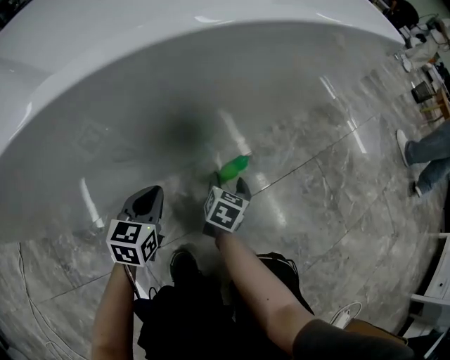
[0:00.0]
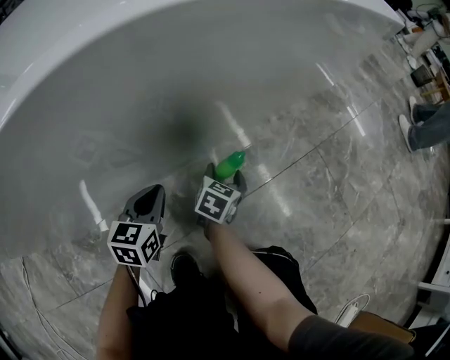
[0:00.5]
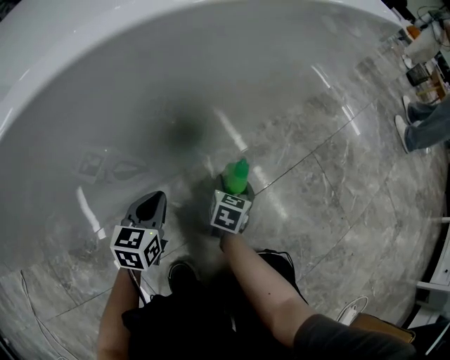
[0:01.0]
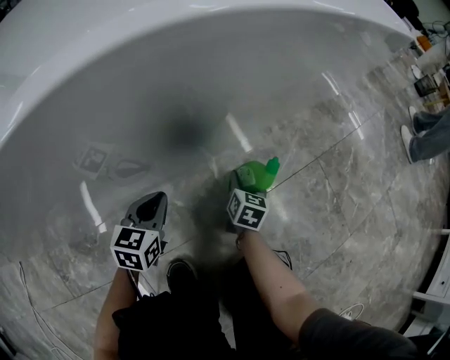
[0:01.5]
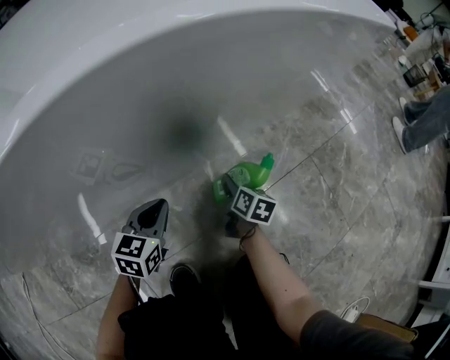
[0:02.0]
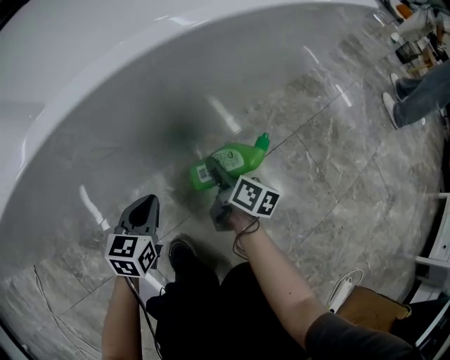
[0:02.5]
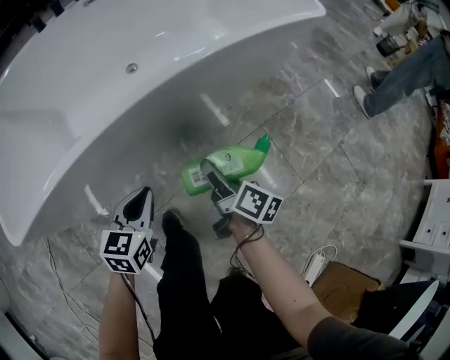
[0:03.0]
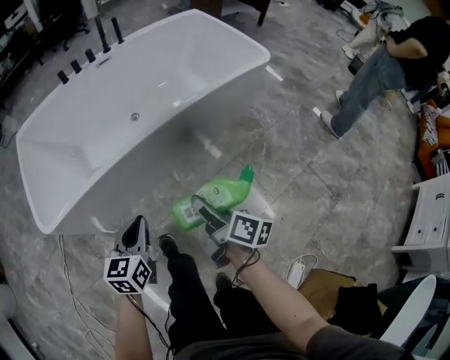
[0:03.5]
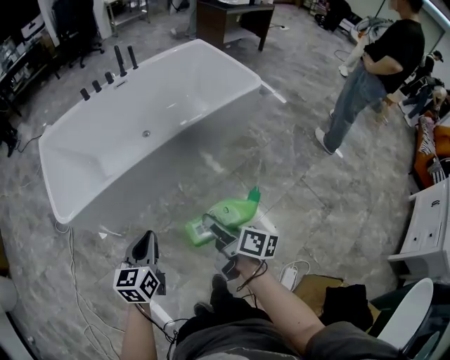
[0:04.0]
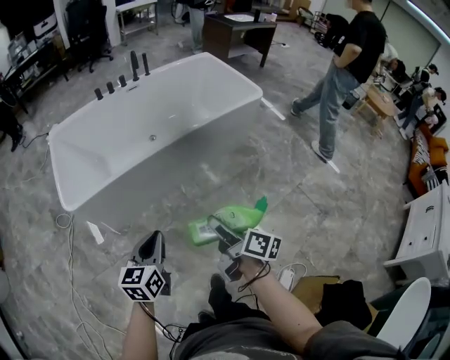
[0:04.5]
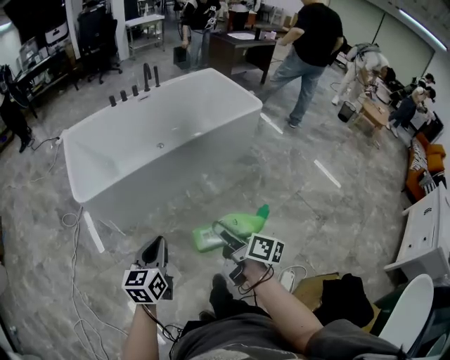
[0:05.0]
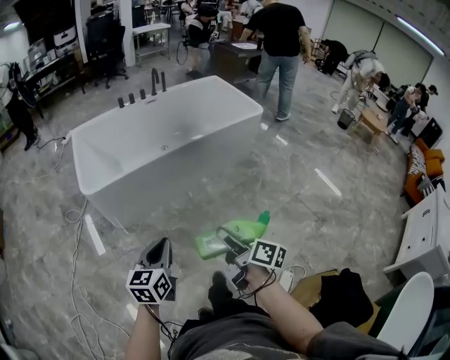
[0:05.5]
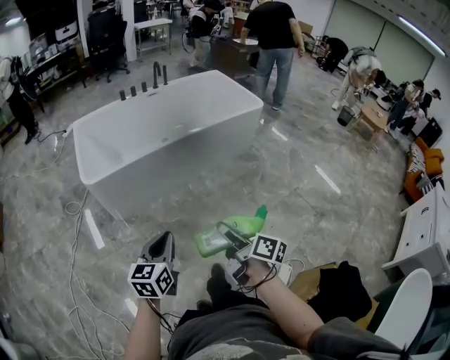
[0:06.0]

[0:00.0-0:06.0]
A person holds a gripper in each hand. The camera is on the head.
0:00.0 to 0:02.0: The right gripper shifts by roughly 5 cm, and changes its angle by roughly 20 degrees, while the left gripper shifts by approximately 5 cm.
0:02.0 to 0:04.0: Both grippers travel together upward and backward, roughly 80 cm. The right gripper swivels about 40 degrees.
0:04.0 to 0:06.0: The grippers both shift backward by roughly 30 cm.

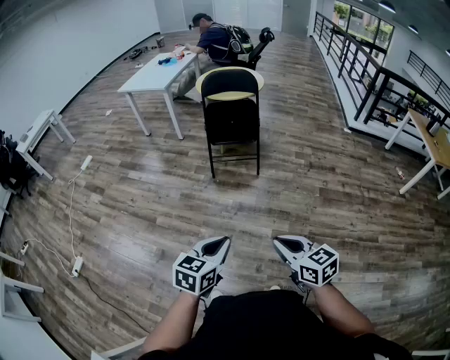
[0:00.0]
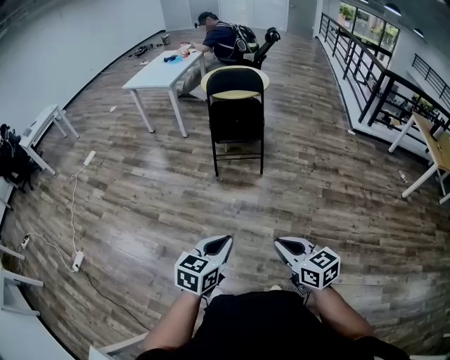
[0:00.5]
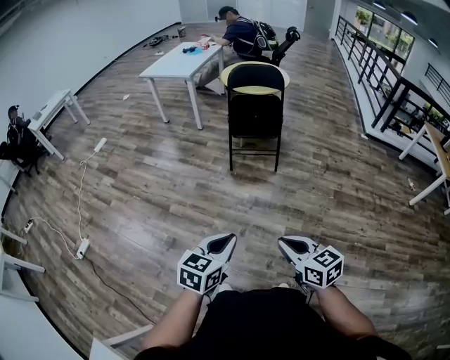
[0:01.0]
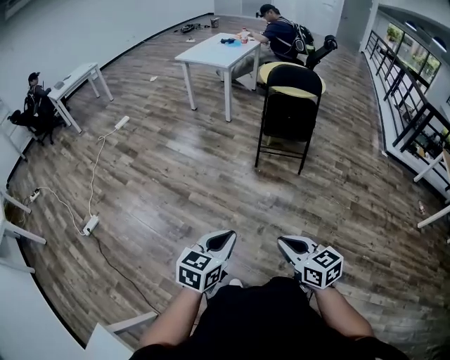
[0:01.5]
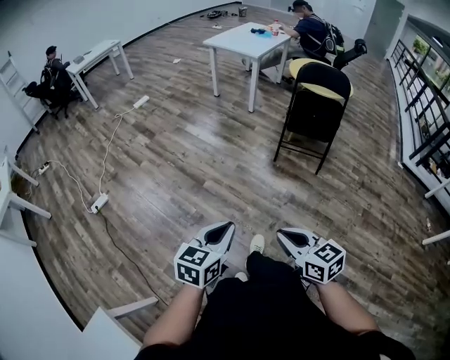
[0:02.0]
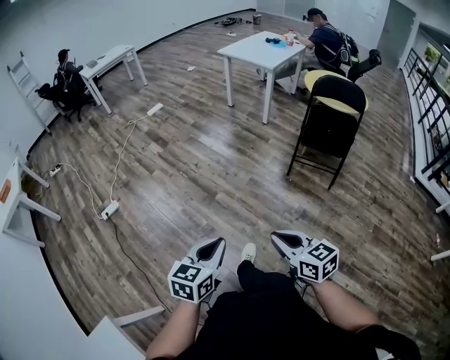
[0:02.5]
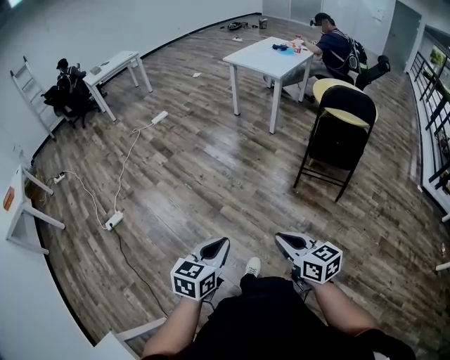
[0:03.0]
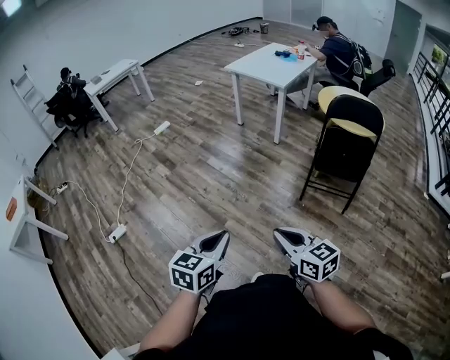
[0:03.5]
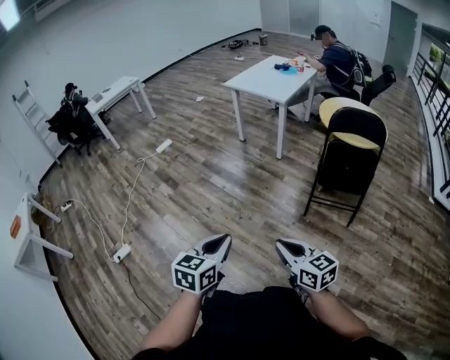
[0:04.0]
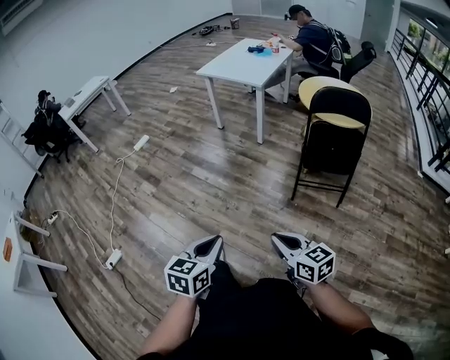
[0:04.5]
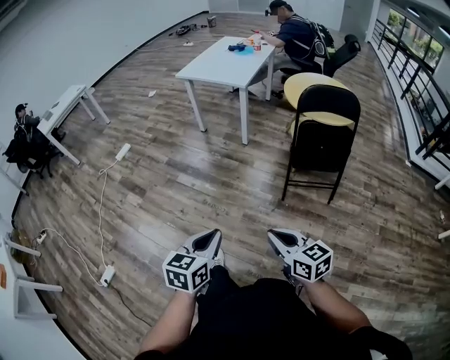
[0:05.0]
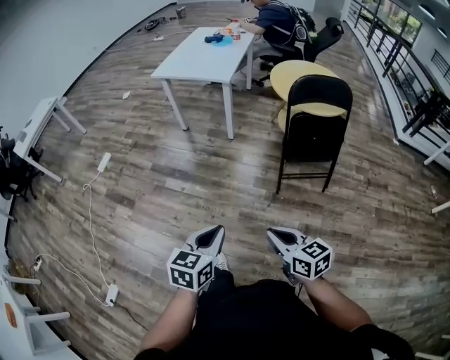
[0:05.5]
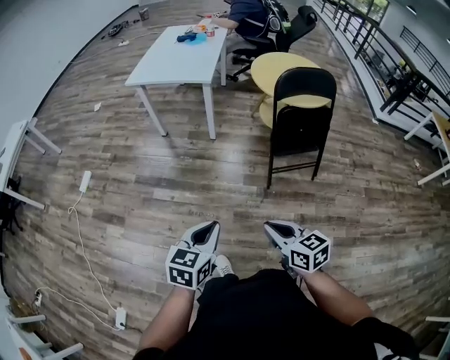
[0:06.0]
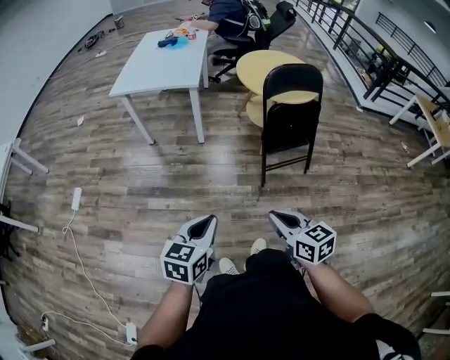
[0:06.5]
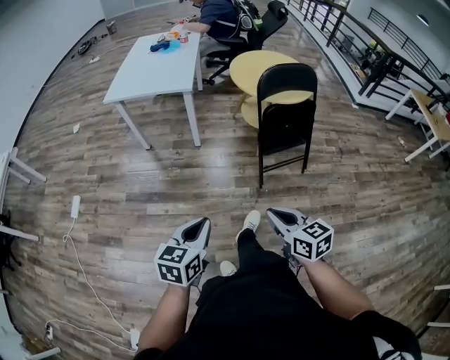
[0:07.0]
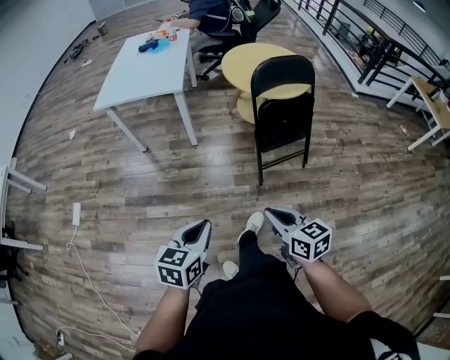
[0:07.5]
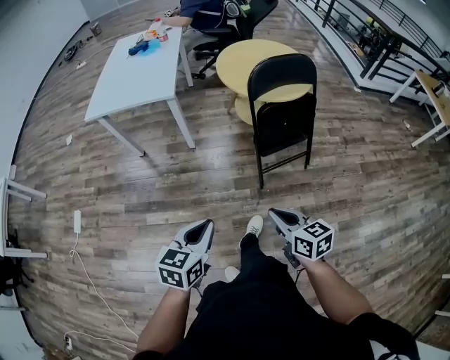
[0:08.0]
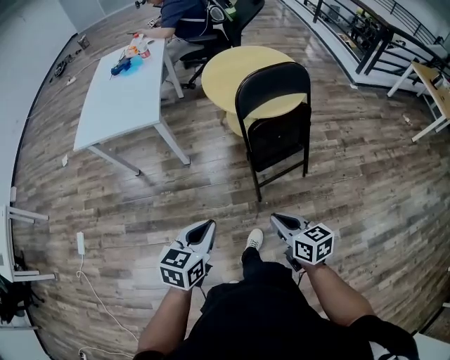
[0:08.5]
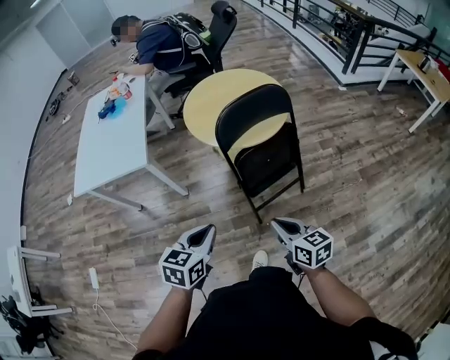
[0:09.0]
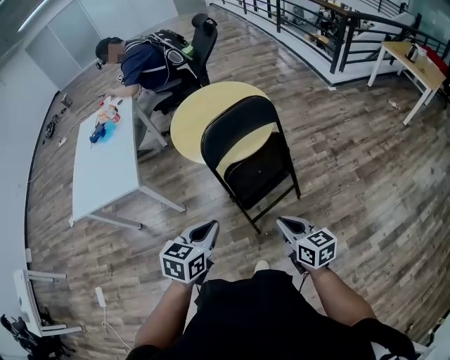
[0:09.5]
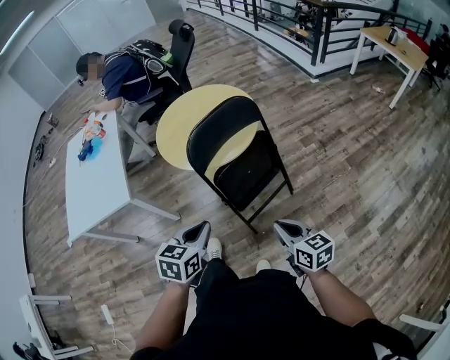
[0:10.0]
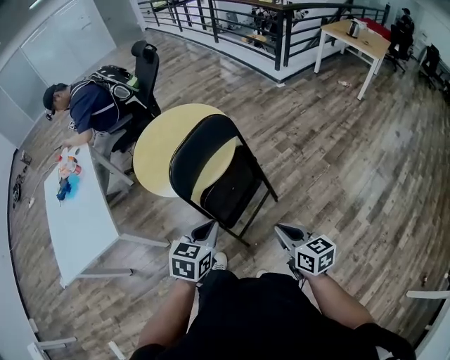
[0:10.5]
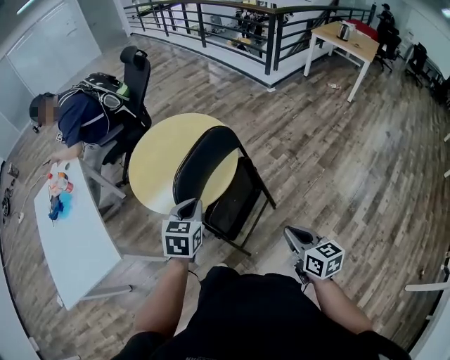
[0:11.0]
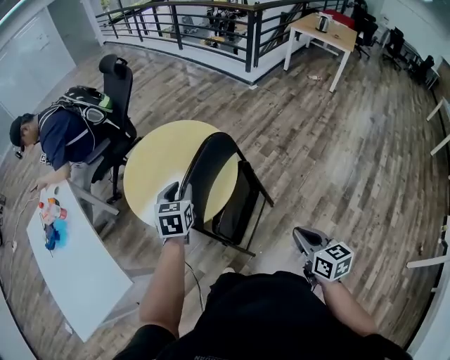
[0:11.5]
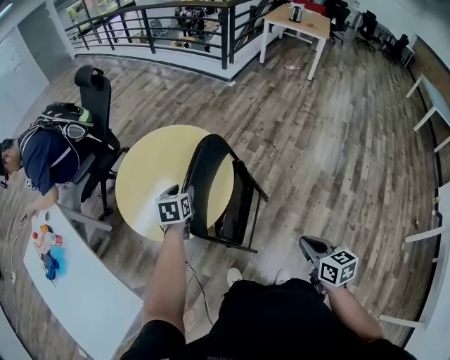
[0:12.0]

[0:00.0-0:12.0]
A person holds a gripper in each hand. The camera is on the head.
0:00.0 to 0:02.0: Both grippers travel together to the left, roughly 30 cm. The right gripper turns by some 20 degrees. Meanwhile the left gripper rotates about 20 degrees.
0:02.0 to 0:04.0: The two grippers go about 35 cm forward.
0:04.0 to 0:06.0: The left gripper shifts by some 30 cm, and rotates some 30 degrees. Meanwhile the right gripper ends up about 25 cm from where it was, and rotates roughly 30 degrees.
0:06.0 to 0:08.0: The two grippers go roughly 15 cm forward.
0:08.0 to 0:10.0: Both grippers move forward and to the right, approximately 30 cm. The right gripper turns by about 20 degrees. The left gripper turns by approximately 20 degrees.
0:10.0 to 0:12.0: The left gripper changes place by about 40 cm, and opens its fingers. The right gripper ends up some 10 cm from where it was, and changes its angle by some 40 degrees.

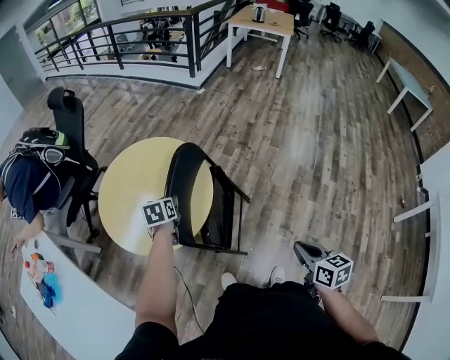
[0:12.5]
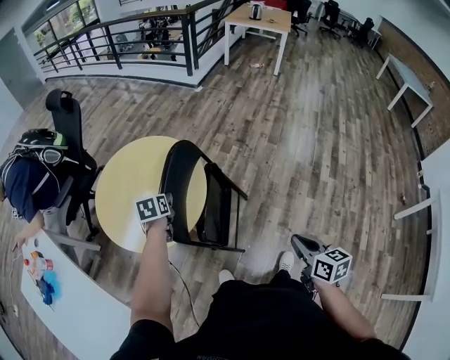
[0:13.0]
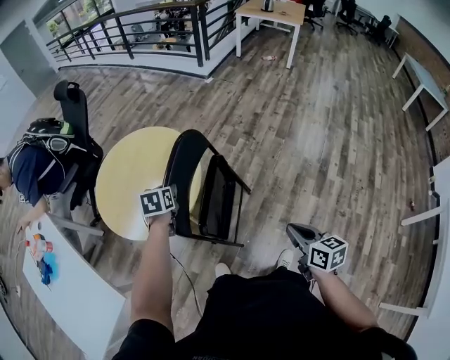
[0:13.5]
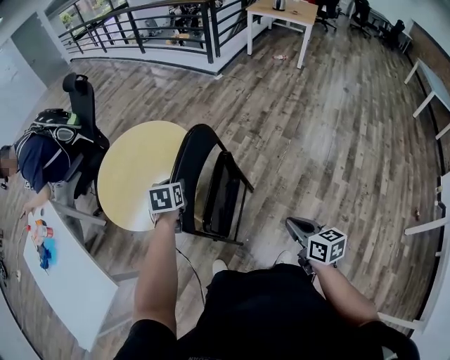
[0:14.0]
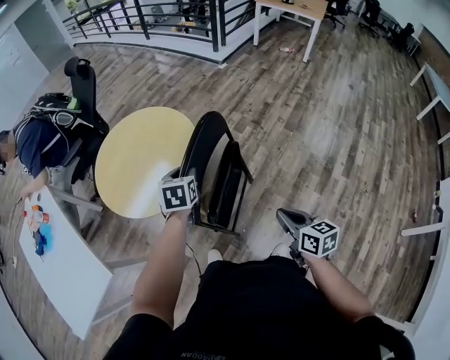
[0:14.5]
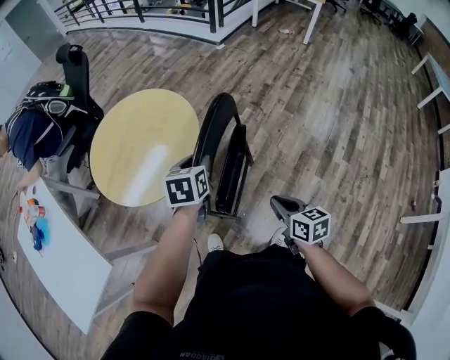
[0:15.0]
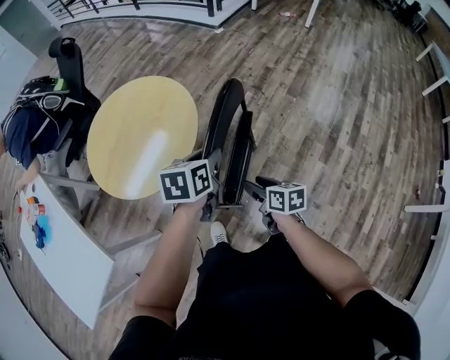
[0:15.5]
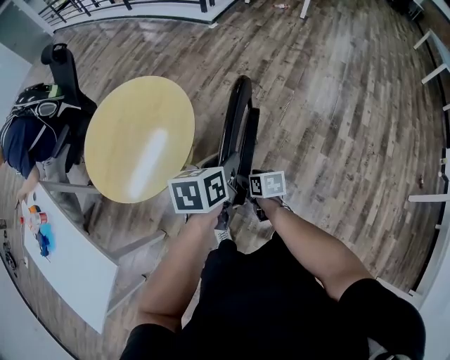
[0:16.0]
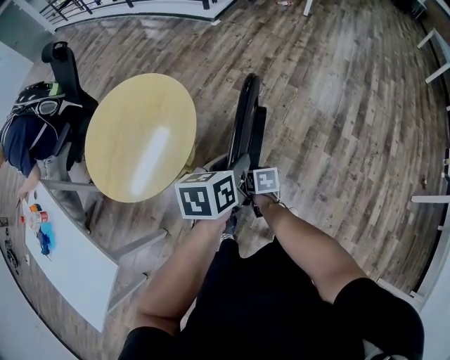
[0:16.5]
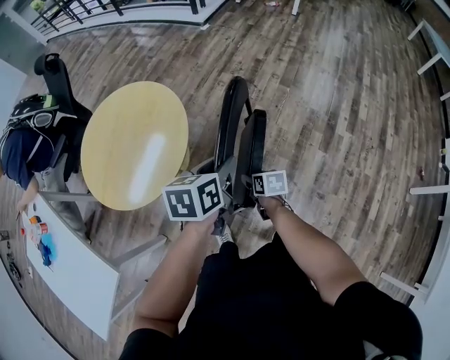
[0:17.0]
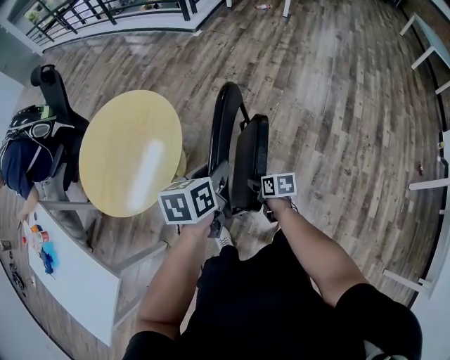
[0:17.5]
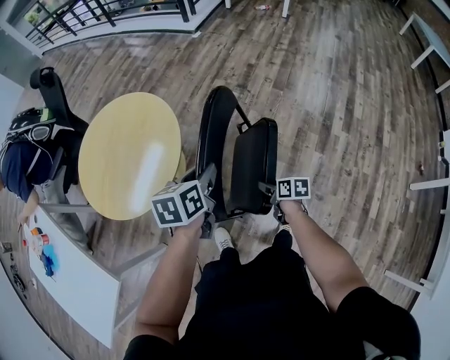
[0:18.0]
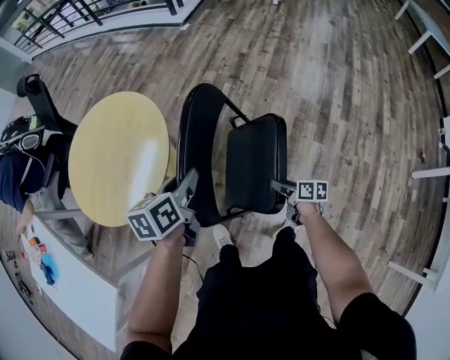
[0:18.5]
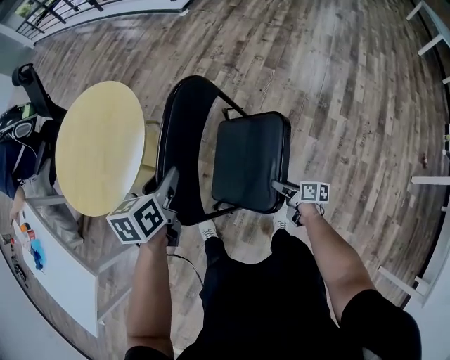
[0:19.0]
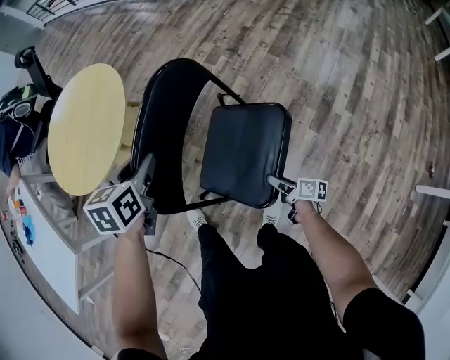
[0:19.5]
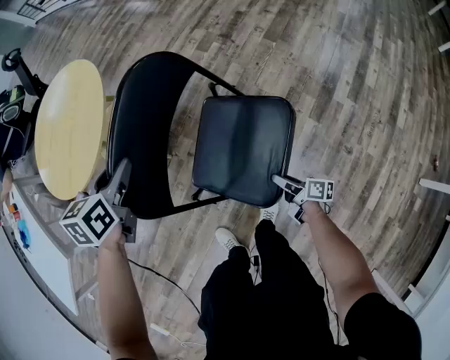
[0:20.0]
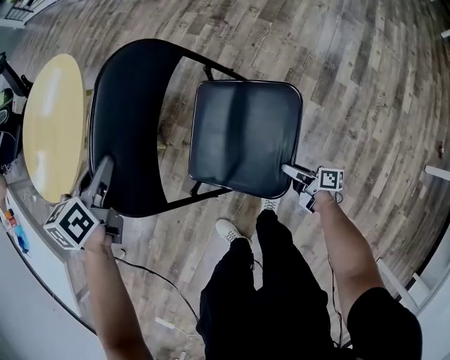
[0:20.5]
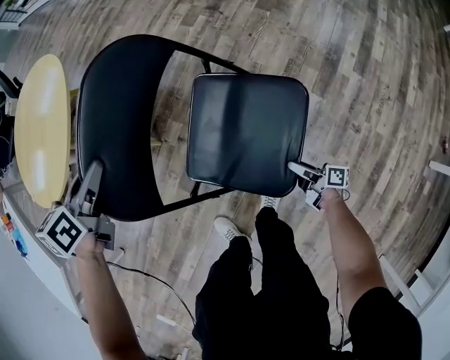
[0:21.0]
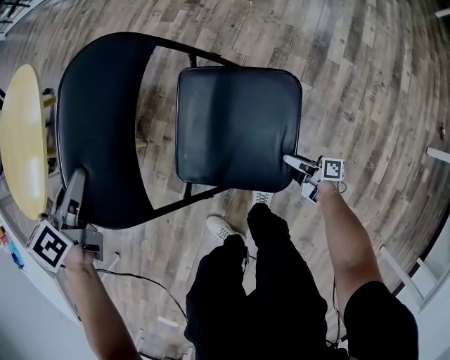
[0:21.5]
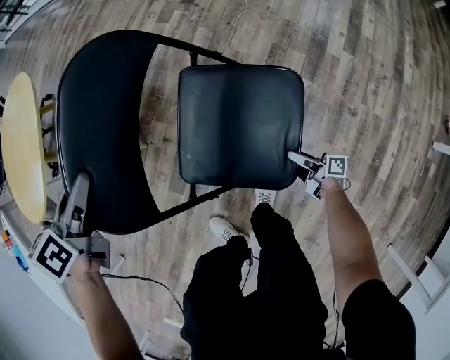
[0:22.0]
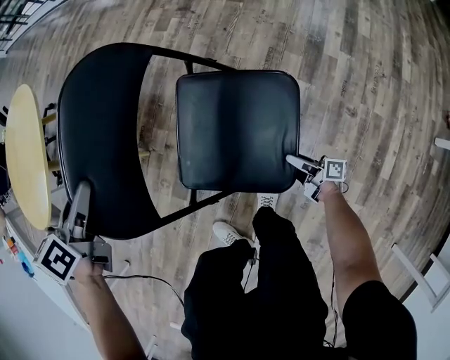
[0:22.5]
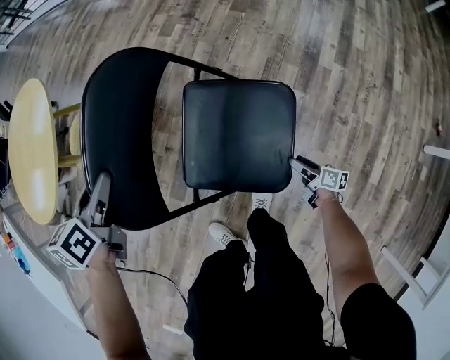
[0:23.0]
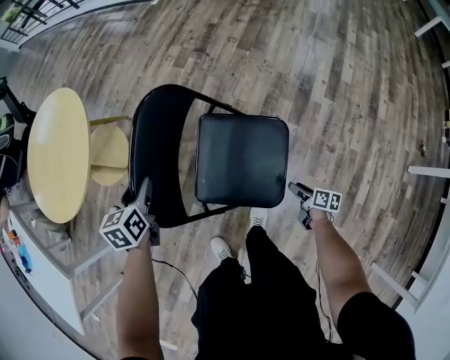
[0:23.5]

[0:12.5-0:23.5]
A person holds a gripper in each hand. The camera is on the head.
0:12.5 to 0:14.5: The right gripper goes about 10 cm to the right and forward. The left gripper heads to the right and backward, covering about 15 cm.
0:14.5 to 0:16.0: The left gripper moves to the right and backward, about 15 cm, and swivels roughly 30 degrees; the right gripper shifts about 20 cm downward, to the left and forward, swivels approximately 30 degrees, and opens its fingers.
0:16.0 to 0:18.0: The right gripper shifts about 15 cm to the right and downward.
0:18.0 to 0:20.0: The right gripper moves to the right, downward and backward, roughly 30 cm, and turns by roughly 30 degrees. Meanwhile the left gripper goes roughly 10 cm downward.
0:20.0 to 0:21.5: The right gripper heads downward and to the right, covering approximately 15 cm, while the left gripper moves downward, about 5 cm.
0:21.5 to 0:23.5: The right gripper is displaced upward and to the right by some 10 cm, and turns by about 30 degrees.
